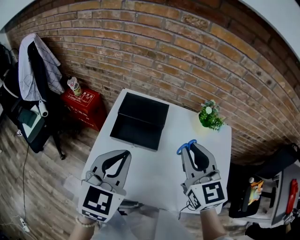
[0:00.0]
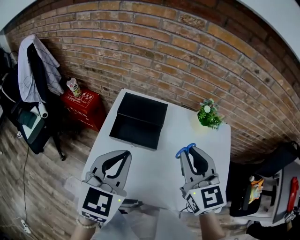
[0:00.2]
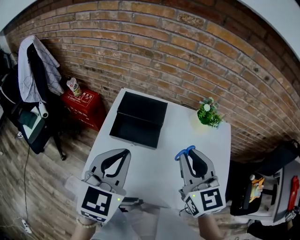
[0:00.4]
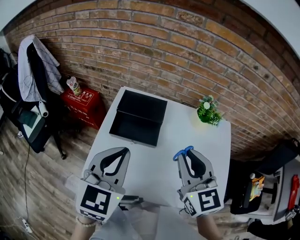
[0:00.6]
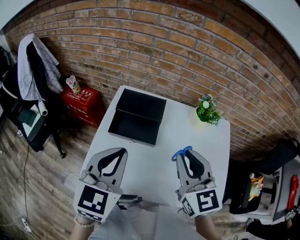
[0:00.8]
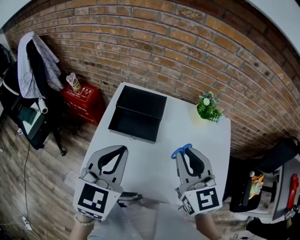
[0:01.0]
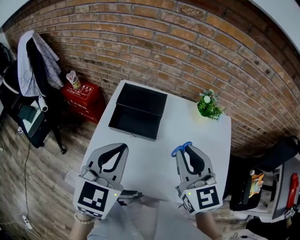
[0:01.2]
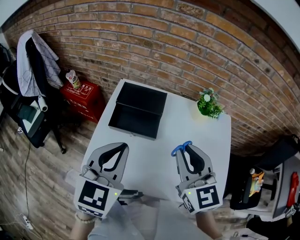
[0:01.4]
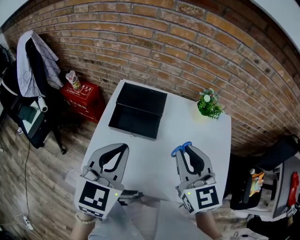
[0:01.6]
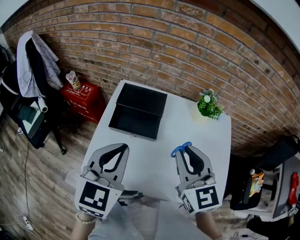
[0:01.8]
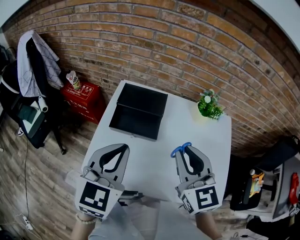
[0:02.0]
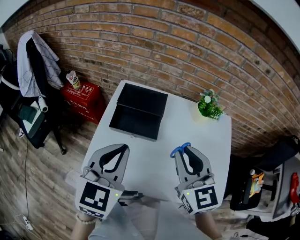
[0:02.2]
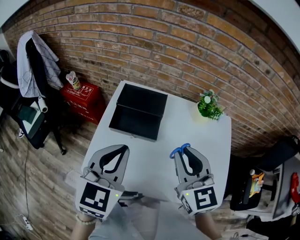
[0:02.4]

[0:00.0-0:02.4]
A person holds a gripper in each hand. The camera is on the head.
0:00.0 to 0:01.2: There are only small adjustments of the grippers.
0:01.2 to 0:02.4: Neither gripper changes place.

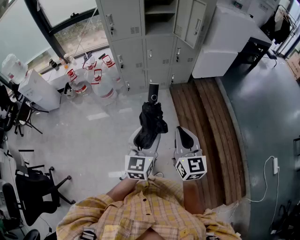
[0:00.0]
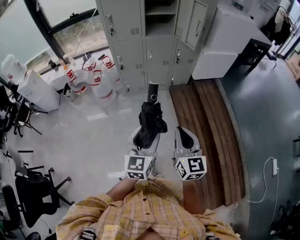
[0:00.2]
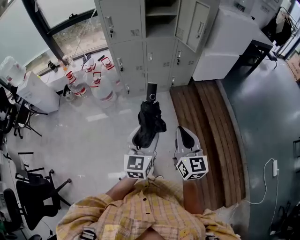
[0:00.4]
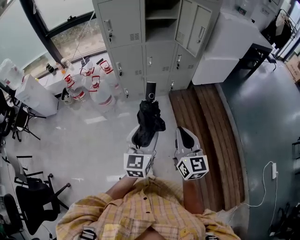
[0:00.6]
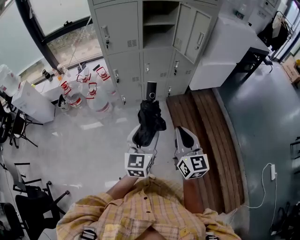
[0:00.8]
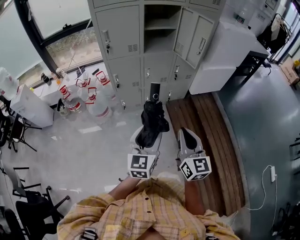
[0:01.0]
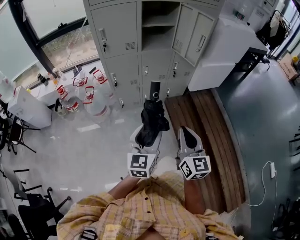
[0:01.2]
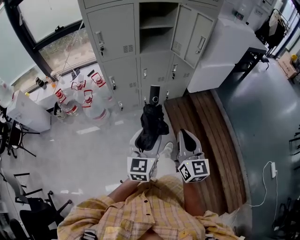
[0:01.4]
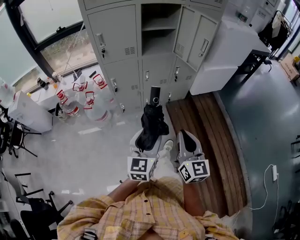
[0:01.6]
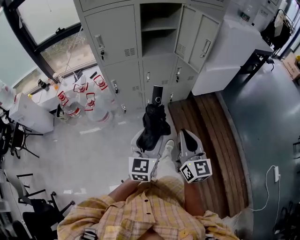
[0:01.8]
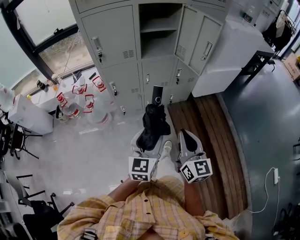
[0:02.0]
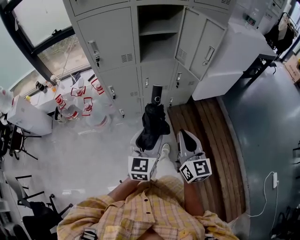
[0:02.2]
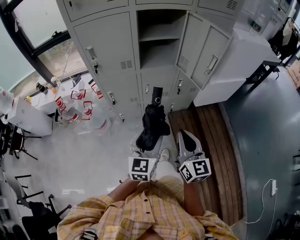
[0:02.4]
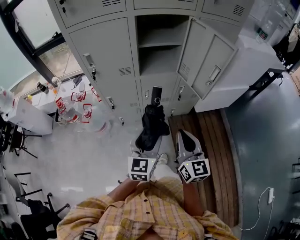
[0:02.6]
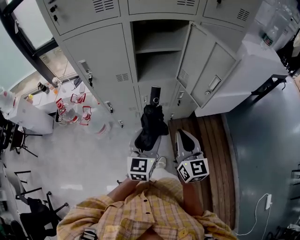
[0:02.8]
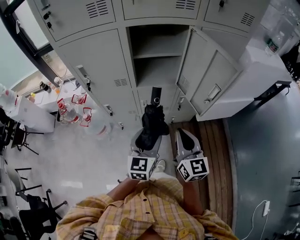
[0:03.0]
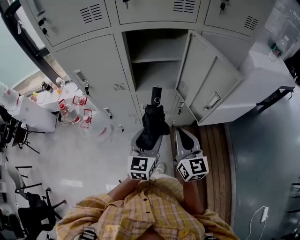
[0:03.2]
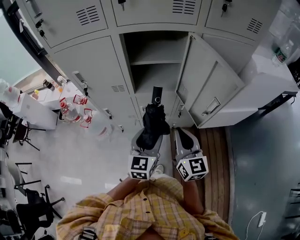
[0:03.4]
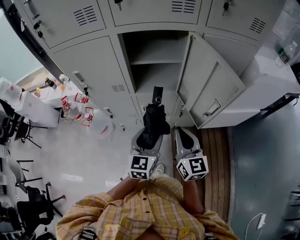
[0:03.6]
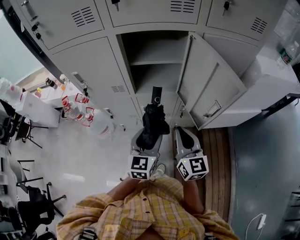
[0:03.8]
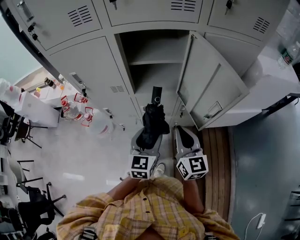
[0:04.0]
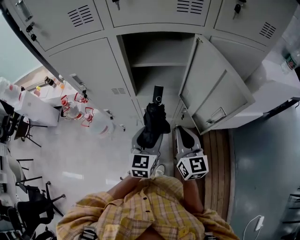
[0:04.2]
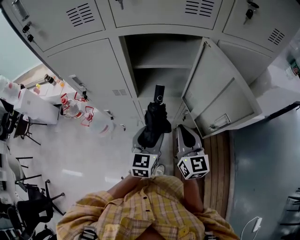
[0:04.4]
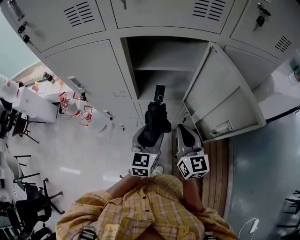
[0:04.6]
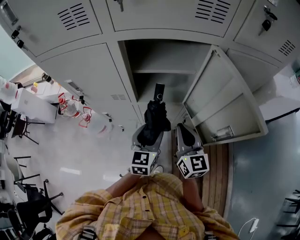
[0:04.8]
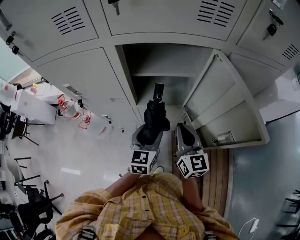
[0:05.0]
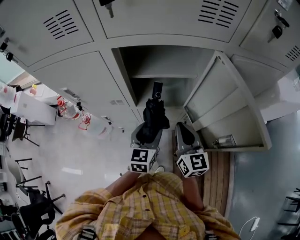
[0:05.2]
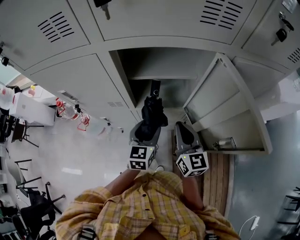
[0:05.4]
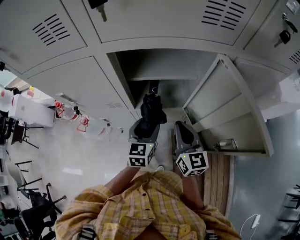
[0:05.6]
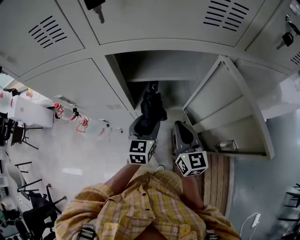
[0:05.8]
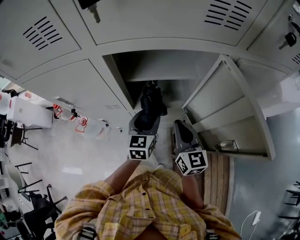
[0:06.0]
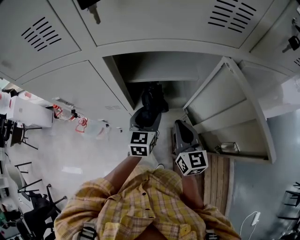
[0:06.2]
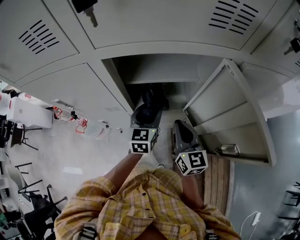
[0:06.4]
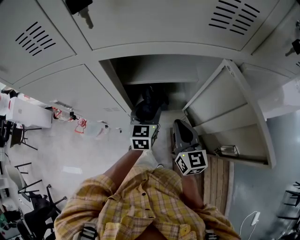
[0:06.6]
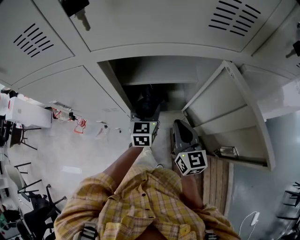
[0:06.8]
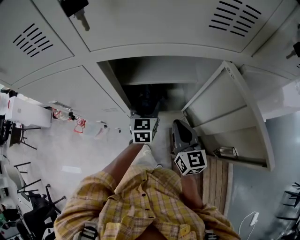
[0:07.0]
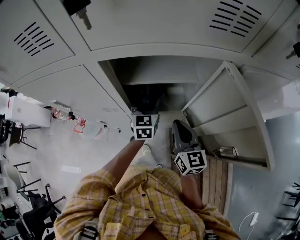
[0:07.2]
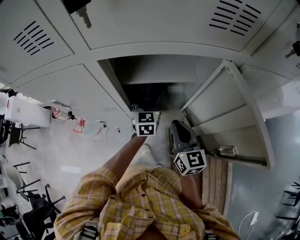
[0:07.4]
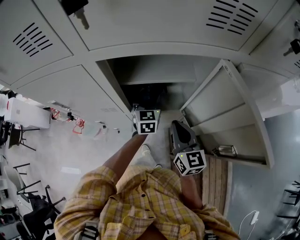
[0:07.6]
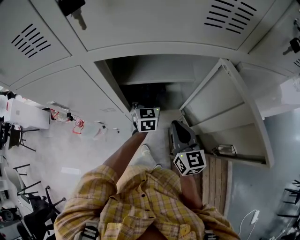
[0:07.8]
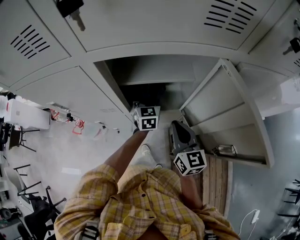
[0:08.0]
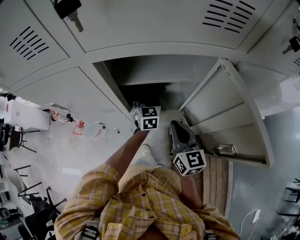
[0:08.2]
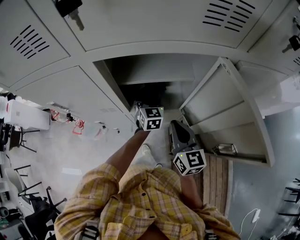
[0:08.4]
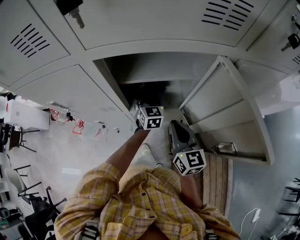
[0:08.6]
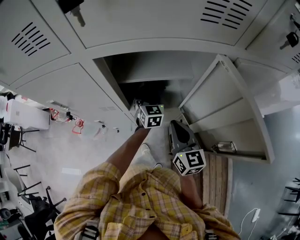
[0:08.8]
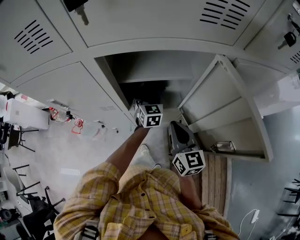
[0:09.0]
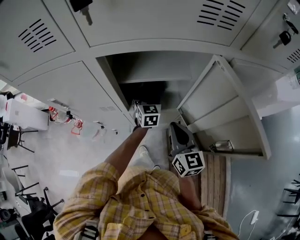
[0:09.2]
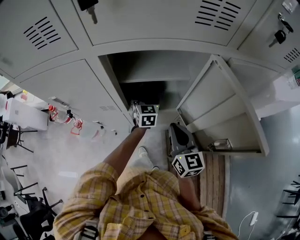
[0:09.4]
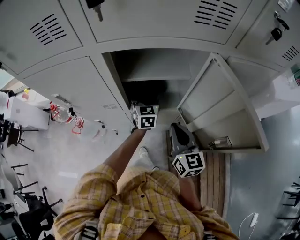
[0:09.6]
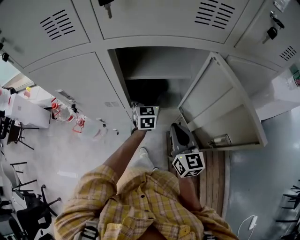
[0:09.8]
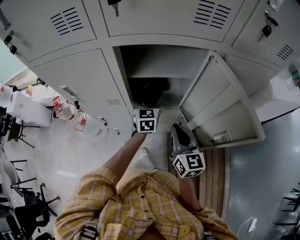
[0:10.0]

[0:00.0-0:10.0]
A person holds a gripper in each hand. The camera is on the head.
0:00.0 to 0:01.4: The grippers both shift forward by roughly 20 cm.
0:01.4 to 0:02.8: The grippers both shift forward by roughly 30 cm.
0:02.8 to 0:04.2: The left gripper moves forward and to the right, some 15 cm, while the right gripper goes approximately 15 cm forward.
0:04.2 to 0:05.8: Both grippers travel together forward, some 15 cm.
0:05.8 to 0:07.2: The left gripper travels forward by approximately 10 cm.
0:07.2 to 0:08.6: The left gripper shifts by about 5 cm.
0:08.6 to 0:10.0: The right gripper moves roughly 5 cm. Meanwhile the left gripper shifts some 10 cm upward and backward.

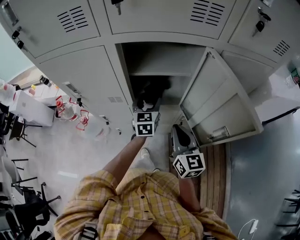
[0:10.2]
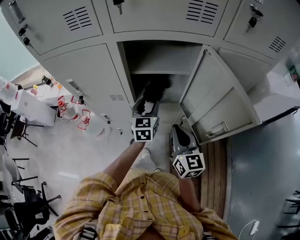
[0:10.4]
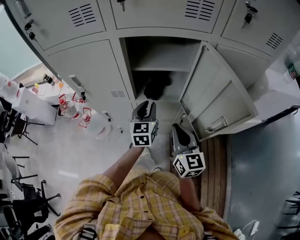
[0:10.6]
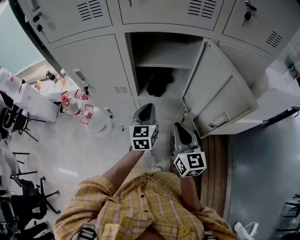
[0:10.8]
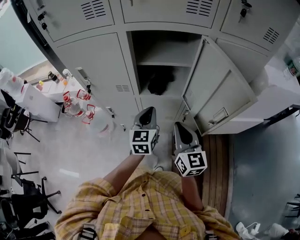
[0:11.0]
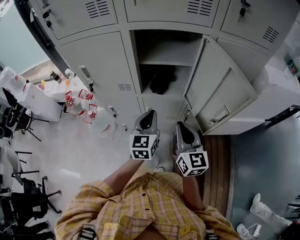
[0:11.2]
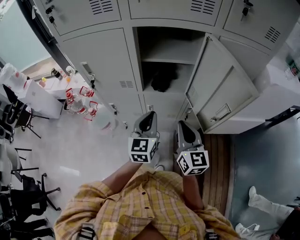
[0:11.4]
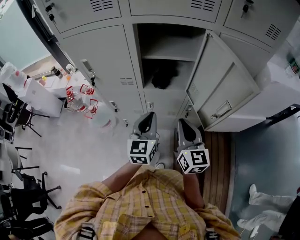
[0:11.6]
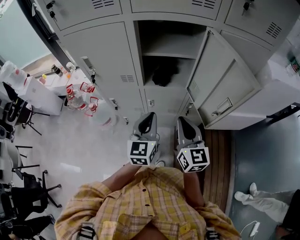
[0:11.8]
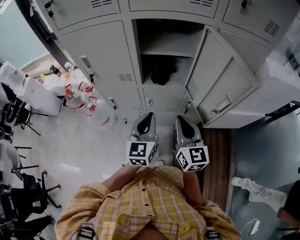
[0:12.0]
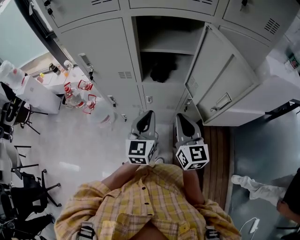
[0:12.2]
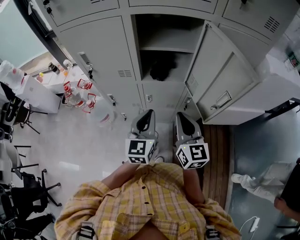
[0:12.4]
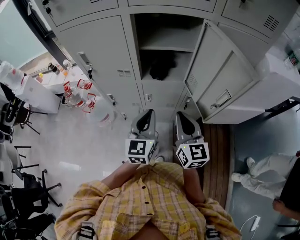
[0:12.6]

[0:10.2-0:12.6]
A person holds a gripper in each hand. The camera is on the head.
0:10.2 to 0:11.4: The right gripper moves backward, about 5 cm, while the left gripper shifts roughly 20 cm backward, and closes.
0:11.4 to 0:12.6: The grippers move only a little.

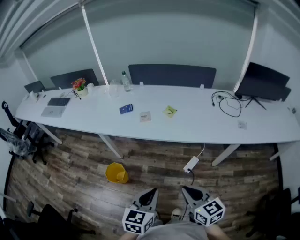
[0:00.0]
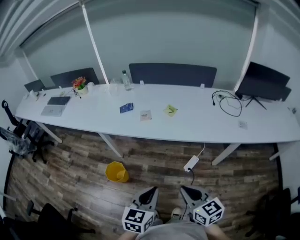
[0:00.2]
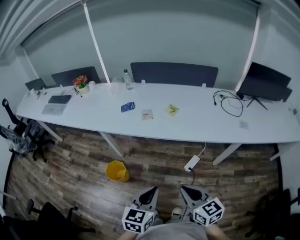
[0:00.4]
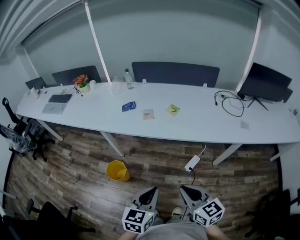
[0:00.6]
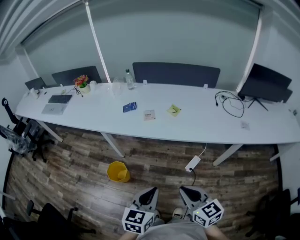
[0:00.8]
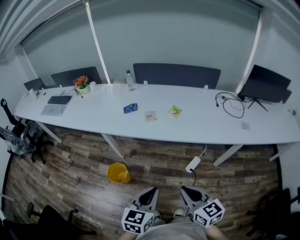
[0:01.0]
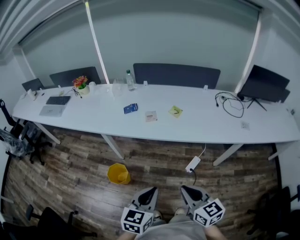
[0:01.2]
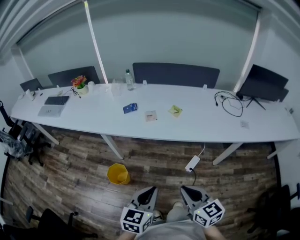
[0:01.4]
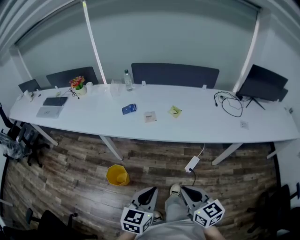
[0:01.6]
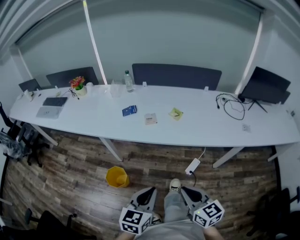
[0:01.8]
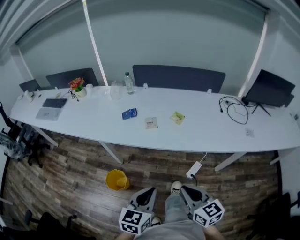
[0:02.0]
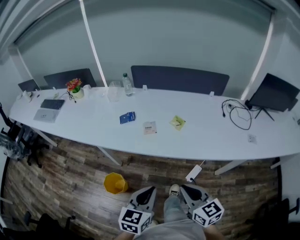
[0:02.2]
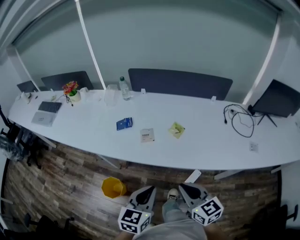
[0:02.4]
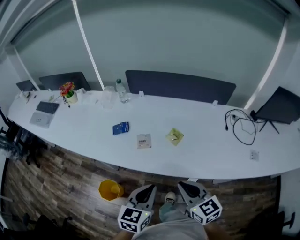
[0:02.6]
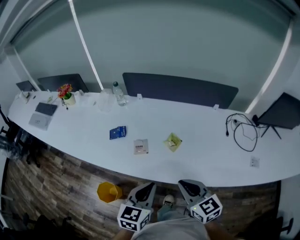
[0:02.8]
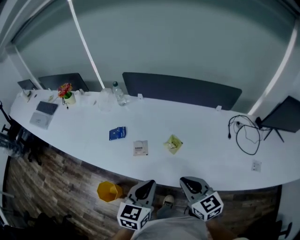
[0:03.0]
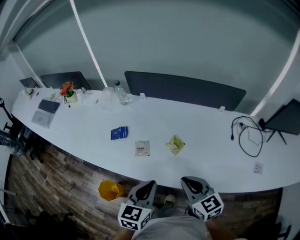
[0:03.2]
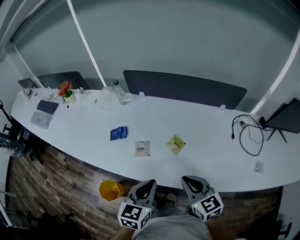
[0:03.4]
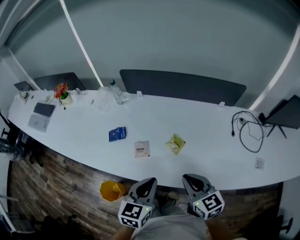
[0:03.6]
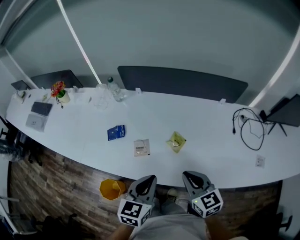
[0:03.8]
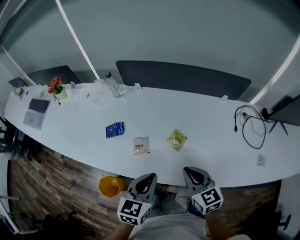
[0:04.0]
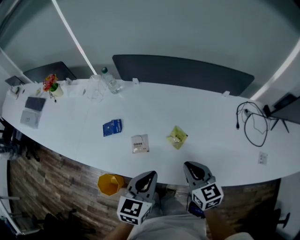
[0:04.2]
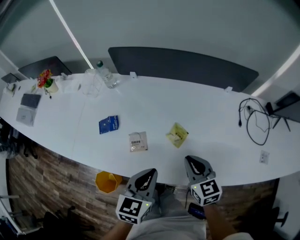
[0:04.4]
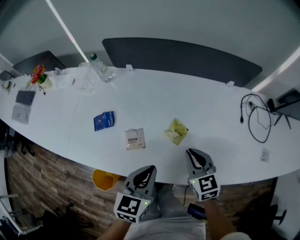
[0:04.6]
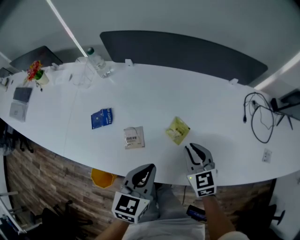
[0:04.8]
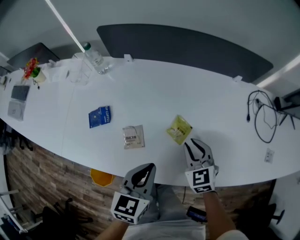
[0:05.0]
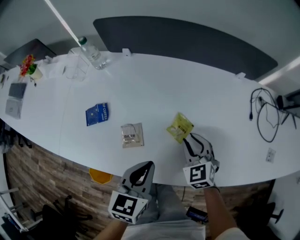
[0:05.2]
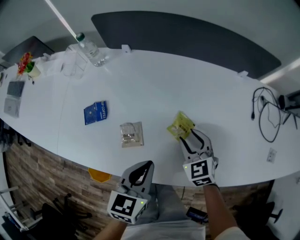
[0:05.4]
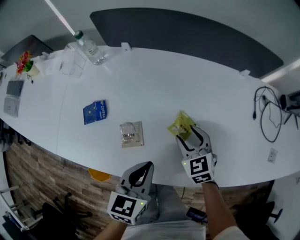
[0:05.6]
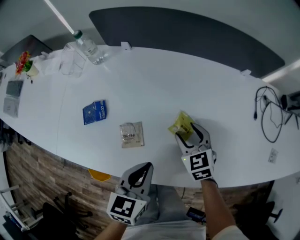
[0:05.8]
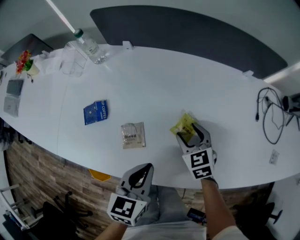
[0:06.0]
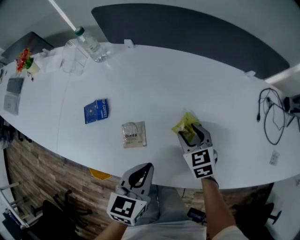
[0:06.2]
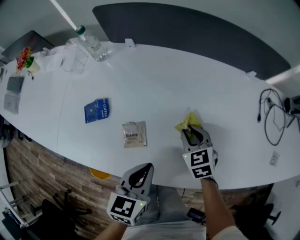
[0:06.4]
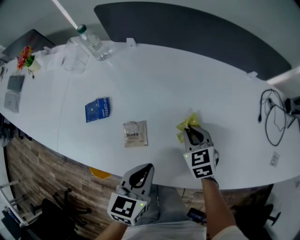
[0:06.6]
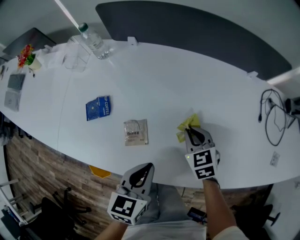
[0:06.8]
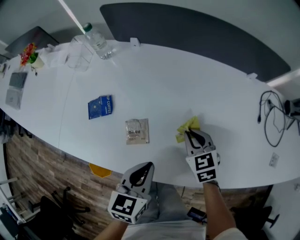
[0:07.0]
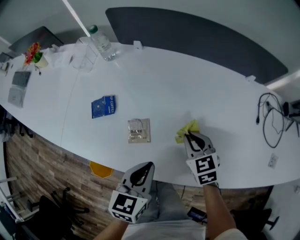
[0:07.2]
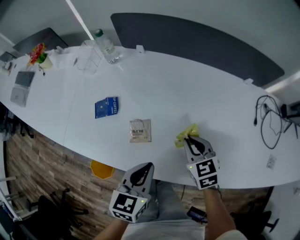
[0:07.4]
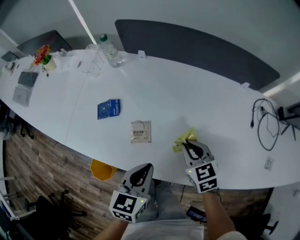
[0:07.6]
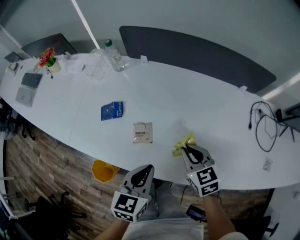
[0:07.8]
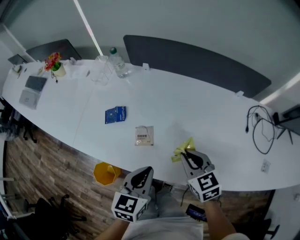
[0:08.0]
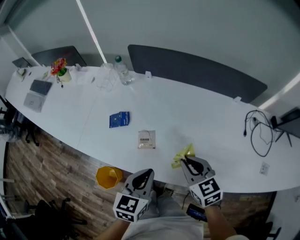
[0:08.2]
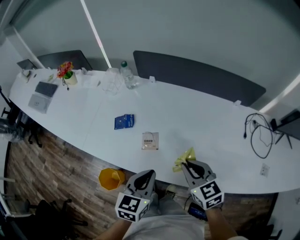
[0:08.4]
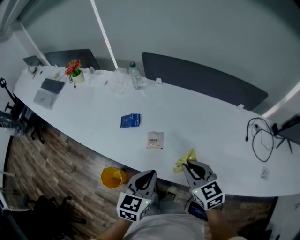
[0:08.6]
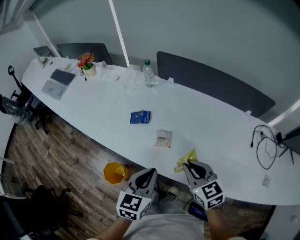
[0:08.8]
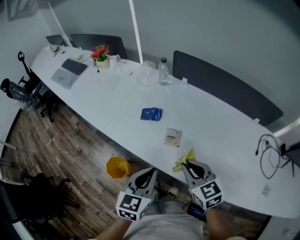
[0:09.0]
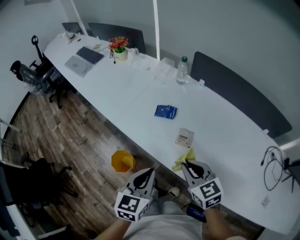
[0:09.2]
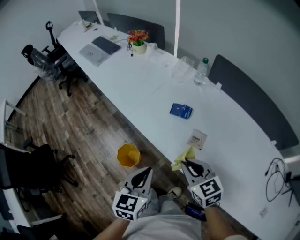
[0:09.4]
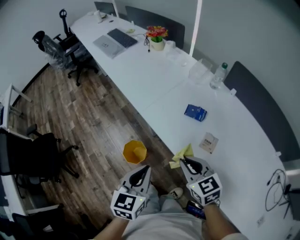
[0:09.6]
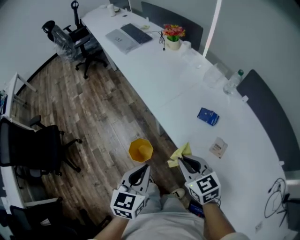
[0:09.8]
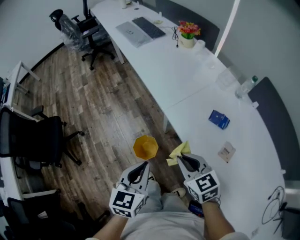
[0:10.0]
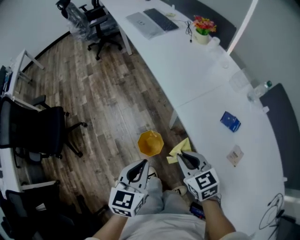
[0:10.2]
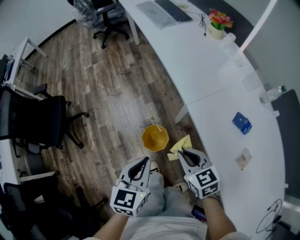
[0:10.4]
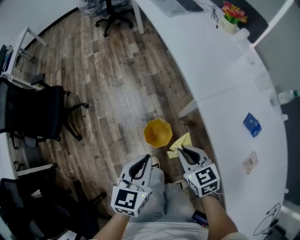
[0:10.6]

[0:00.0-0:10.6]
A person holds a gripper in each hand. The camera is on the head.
0:00.0 to 0:01.6: Both grippers move to the left, approximately 5 cm.
0:01.6 to 0:03.0: Both grippers travel together forward, roughly 35 cm.
0:03.0 to 0:04.6: Both grippers move forward and downward, some 15 cm.
0:04.6 to 0:06.0: The right gripper goes roughly 15 cm downward and forward, and opens. The left gripper heads downward, covering some 5 cm.
0:06.0 to 0:07.6: The right gripper moves upward and backward, about 10 cm, and closes its fingers.
0:07.6 to 0:09.0: The left gripper goes roughly 15 cm to the left, upward and backward. Meanwhile the right gripper shifts roughly 20 cm upward, to the left and backward, and swivels some 20 degrees.
0:09.0 to 0:10.6: The right gripper changes place by approximately 40 cm, and turns by approximately 40 degrees. The left gripper shifts by some 40 cm, and swivels roughly 40 degrees.
